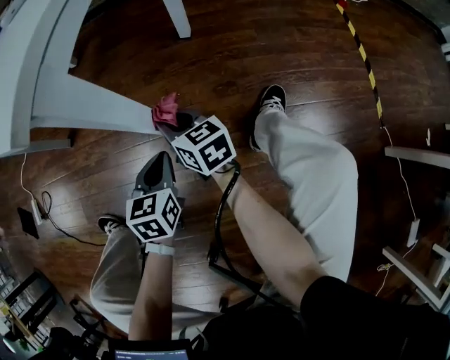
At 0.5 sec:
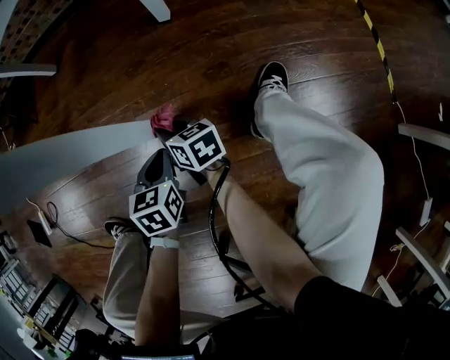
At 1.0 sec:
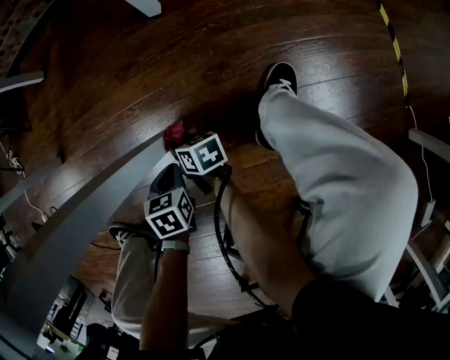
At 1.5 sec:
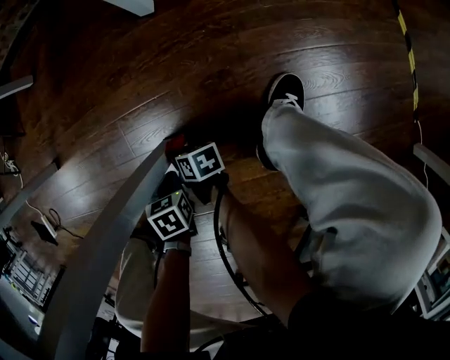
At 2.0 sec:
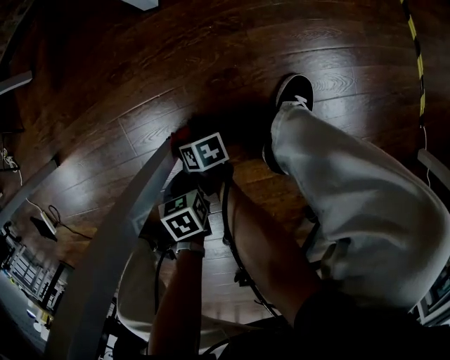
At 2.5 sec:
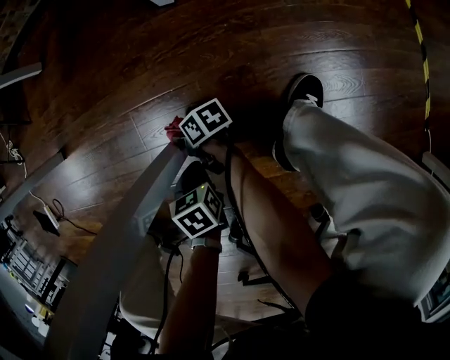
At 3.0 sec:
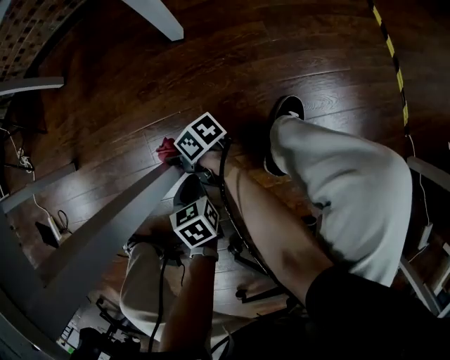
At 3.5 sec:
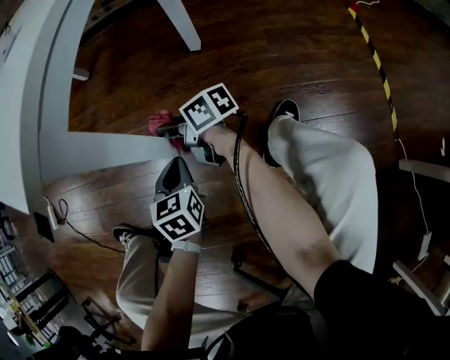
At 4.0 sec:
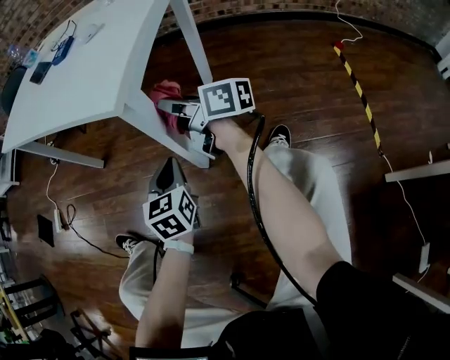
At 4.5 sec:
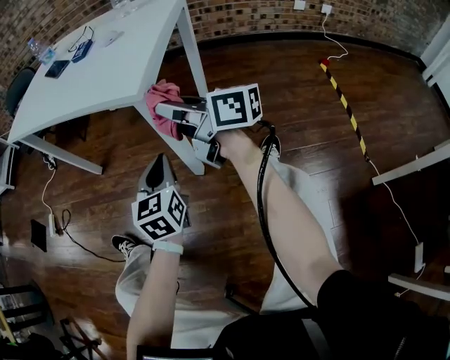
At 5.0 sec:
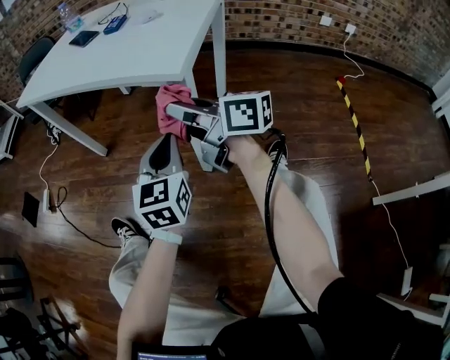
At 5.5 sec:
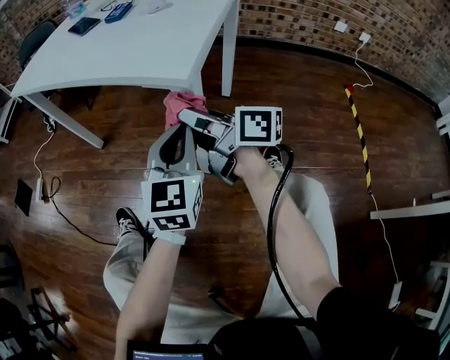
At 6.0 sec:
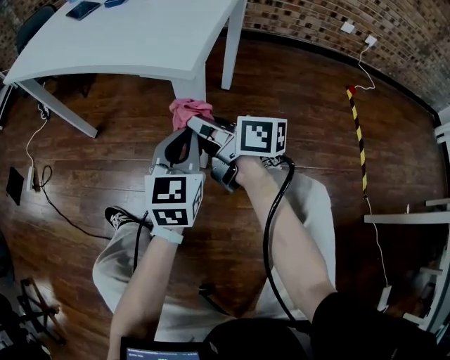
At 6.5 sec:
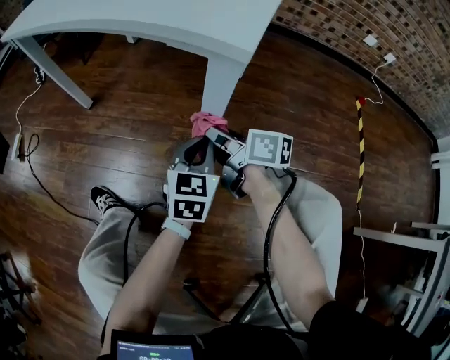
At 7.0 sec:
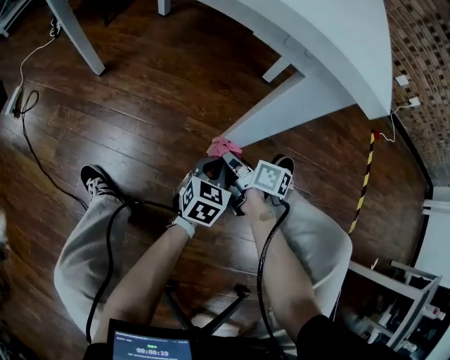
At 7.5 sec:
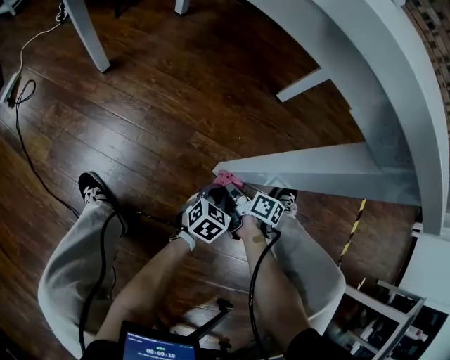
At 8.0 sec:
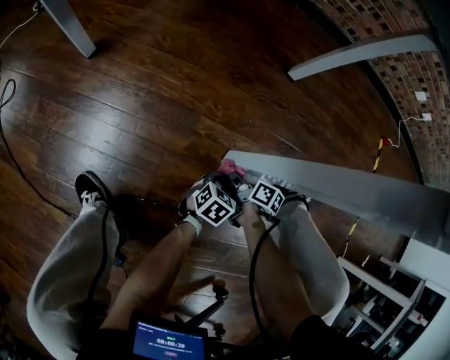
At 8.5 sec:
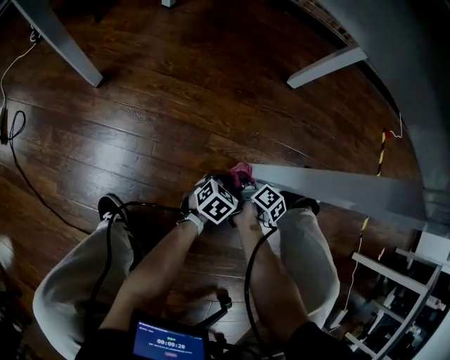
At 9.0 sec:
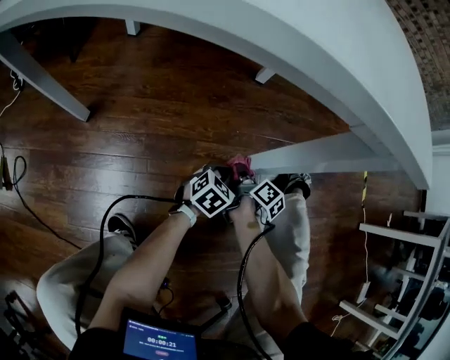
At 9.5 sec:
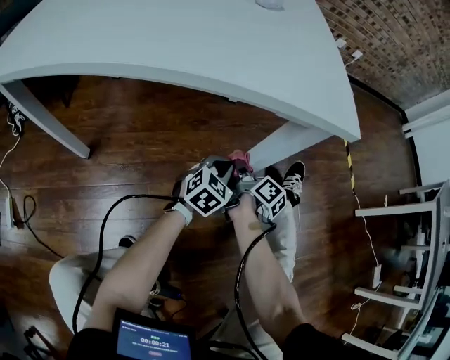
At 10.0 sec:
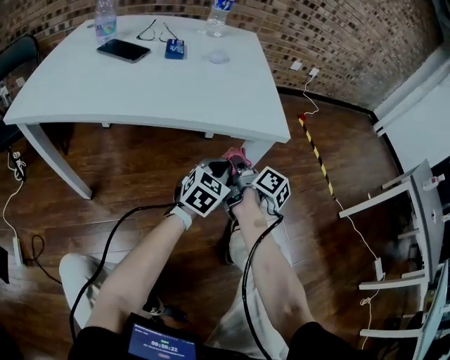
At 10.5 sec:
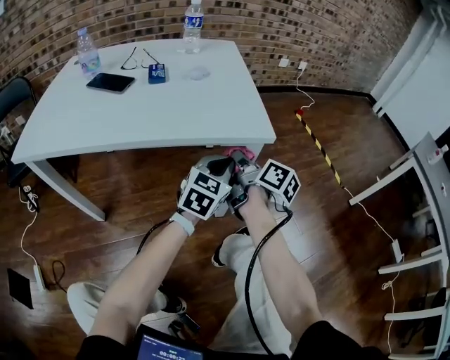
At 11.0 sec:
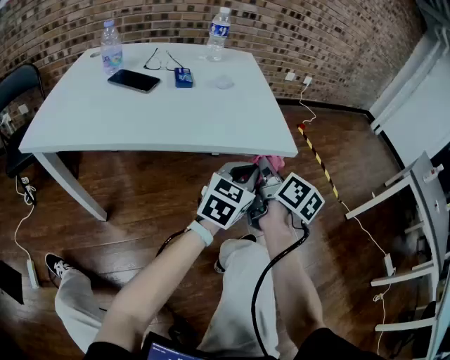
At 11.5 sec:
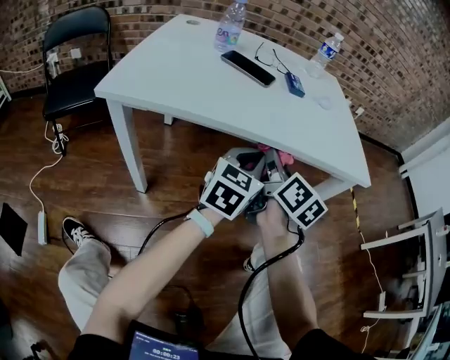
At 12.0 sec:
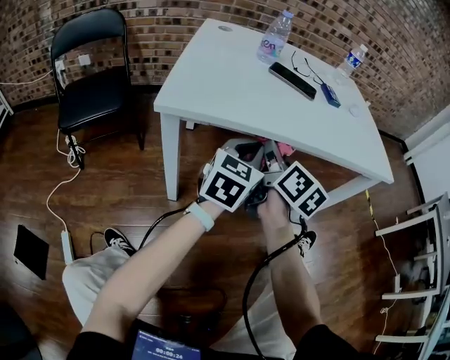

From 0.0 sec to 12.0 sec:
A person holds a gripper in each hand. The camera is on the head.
From 0.0 sec to 2.0 sec: Both grippers travel together downward, some 30 cm. The right gripper twists approximately 40 degrees clockwise, seen from behind; the left gripper points its fingers about 40 degrees further downward.
From 2.0 sec to 4.0 sec: Both grippers move upward, roughly 50 cm. The right gripper points its fingers some 40 degrees further upward, while the left gripper tilts its fingers some 50 degrees upward.
From 4.0 sec to 6.0 sec: The left gripper shifts some 10 cm upward, while the right gripper shifts about 5 cm to the left, and moves about 10 cm upward and comes back.
From 6.0 sec to 8.0 sec: Both grippers travel together downward, roughly 50 cm. The left gripper points its fingers about 30 degrees further downward. Meanwhile the right gripper tilts its fingers some 40 degrees downward.
From 8.0 sec to 10.0 sec: The two grippers go approximately 50 cm upward. The left gripper changes its angle by approximately 50 degrees. The right gripper rotates roughly 50 degrees.
From 10.0 sec to 12.0 sec: The two grippers travel together, to the left, approximately 50 cm. The right gripper changes its angle by approximately 30 degrees.

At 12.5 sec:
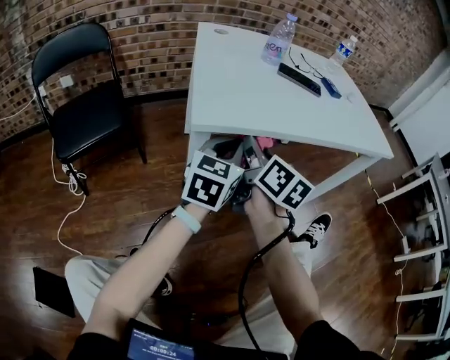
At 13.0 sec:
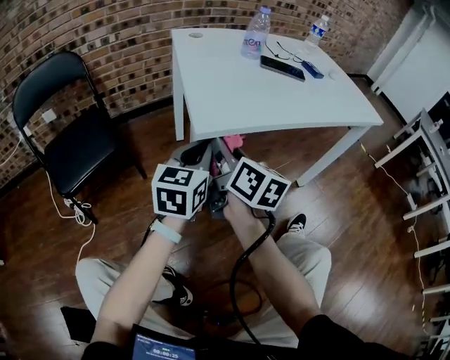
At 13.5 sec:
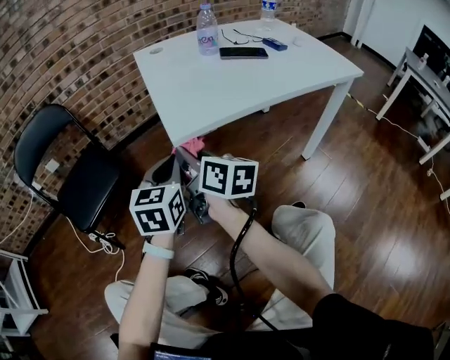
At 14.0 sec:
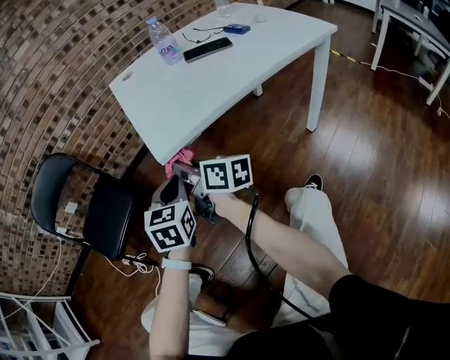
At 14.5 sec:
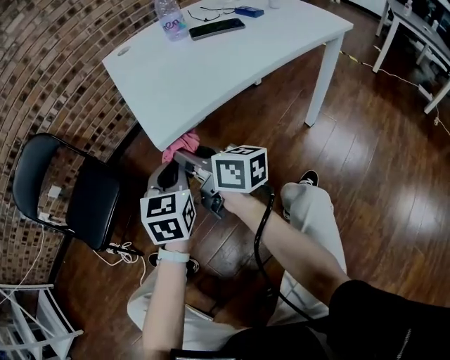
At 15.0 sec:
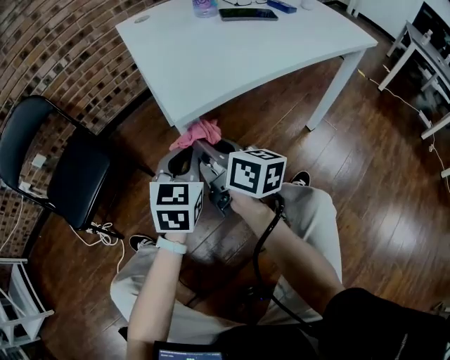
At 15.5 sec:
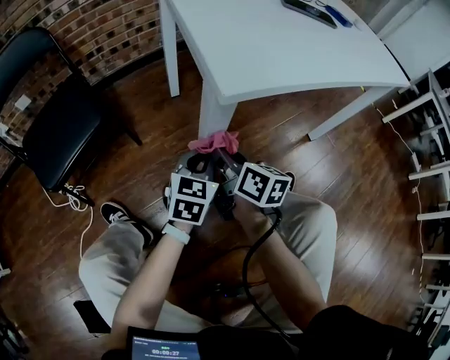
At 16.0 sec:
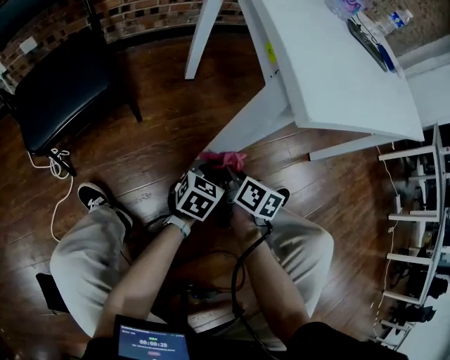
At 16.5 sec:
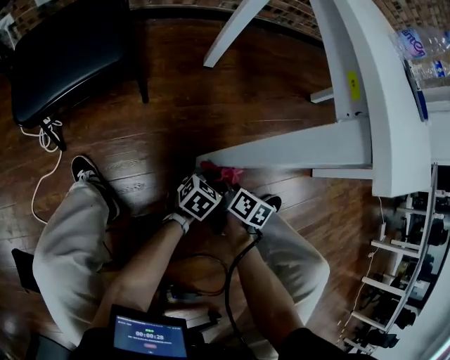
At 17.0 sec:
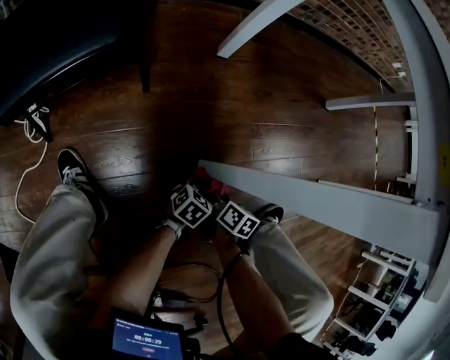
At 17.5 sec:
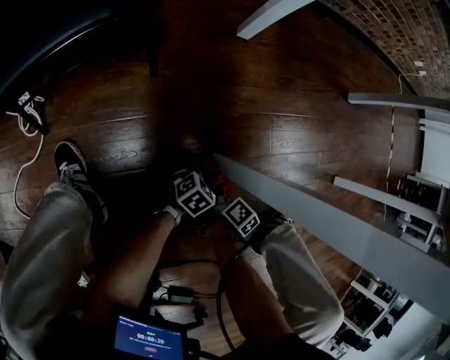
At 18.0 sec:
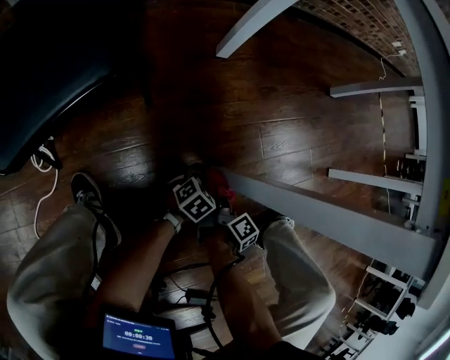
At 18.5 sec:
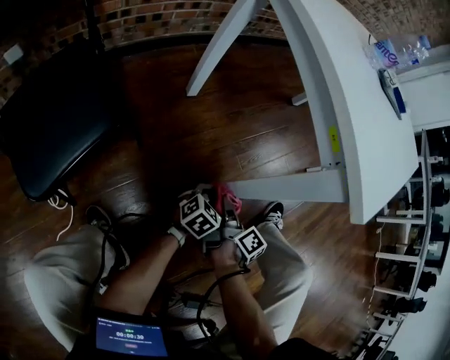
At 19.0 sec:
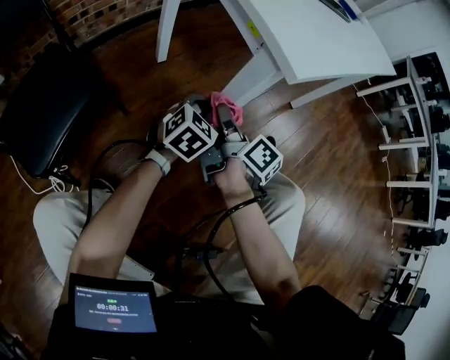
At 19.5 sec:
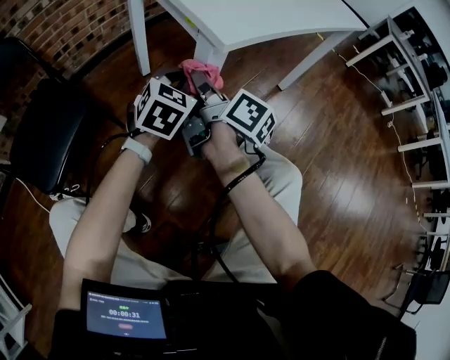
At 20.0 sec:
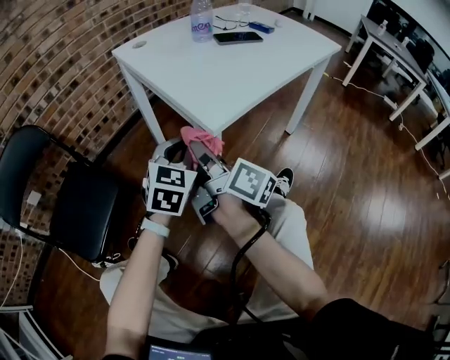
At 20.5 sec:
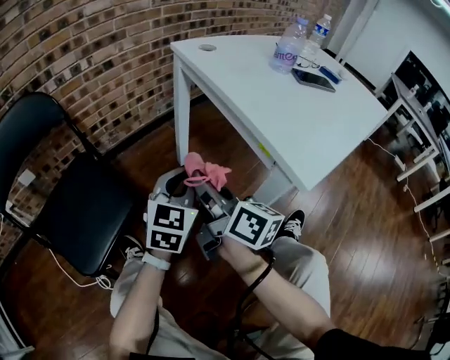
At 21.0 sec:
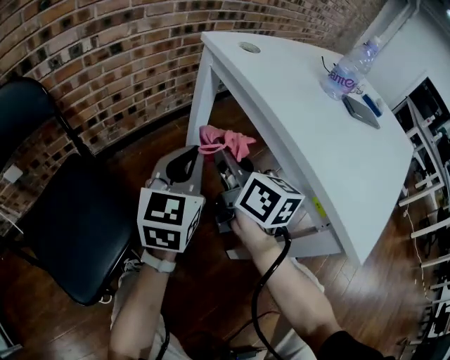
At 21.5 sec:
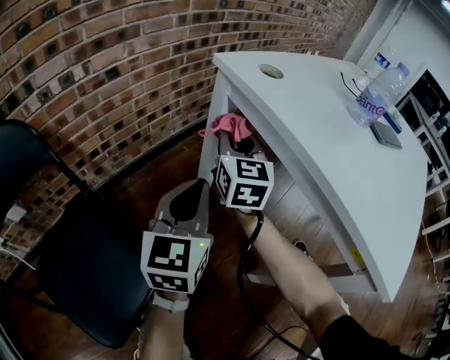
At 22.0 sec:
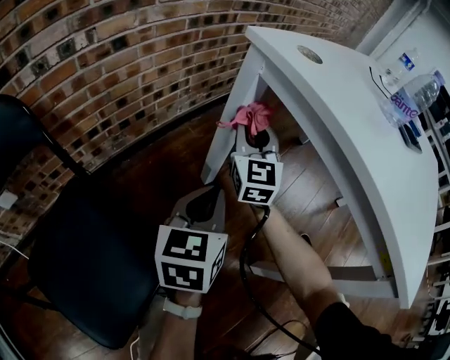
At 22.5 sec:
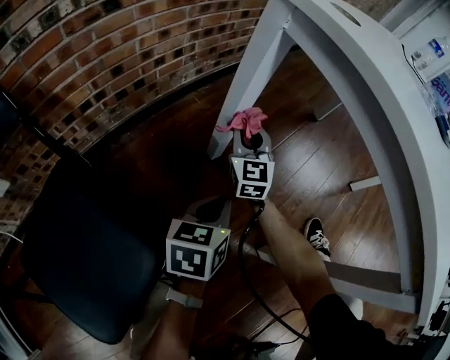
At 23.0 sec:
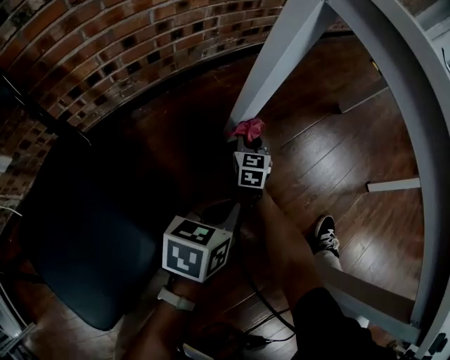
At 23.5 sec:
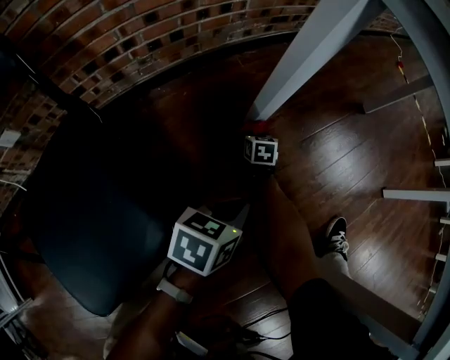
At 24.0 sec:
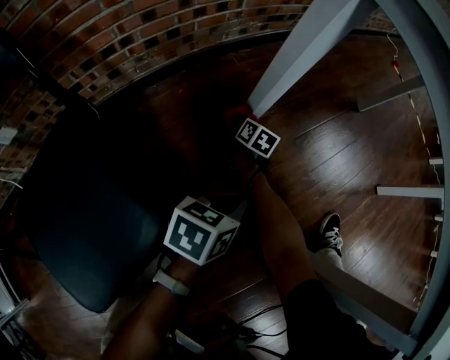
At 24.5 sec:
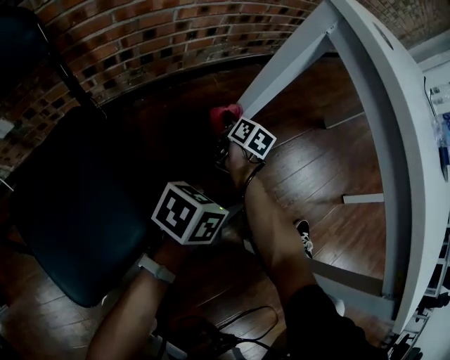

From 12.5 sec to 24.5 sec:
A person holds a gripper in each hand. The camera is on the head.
From 12.5 sec to 14.5 sec: Both grippers move to the left, roughly 10 cm.
From 14.5 sec to 16.5 sec: Both grippers travel together downward, roughly 40 cm. The left gripper turns by about 30 degrees. The right gripper tilts its fingers approximately 40 degrees downward.
From 16.5 sec to 18.5 sec: The left gripper travels to the left by some 5 cm, goes downward and returns, some 20 cm each way, and turns by some 20 degrees; the right gripper travels downward and back again, roughly 20 cm each way, and rotates approximately 50 degrees.
From 18.5 sec to 20.5 sec: The grippers both shift upward and to the left by about 40 cm. The right gripper changes its angle by some 40 degrees, while the left gripper rotates some 30 degrees.
From 20.5 sec to 22.5 sec: The left gripper shifts roughly 30 cm downward and forward, and changes its angle by about 40 degrees, while the right gripper moves forward and downward, approximately 50 cm, and rolls counterclockwise, seen from behind, by about 60 degrees.
From 22.5 sec to 24.5 sec: The left gripper travels downward and back again, approximately 5 cm each way, and turns by roughly 20 degrees. The right gripper shifts approximately 15 cm downward and to the left, and rolls clockwise, seen from behind, by about 40 degrees.

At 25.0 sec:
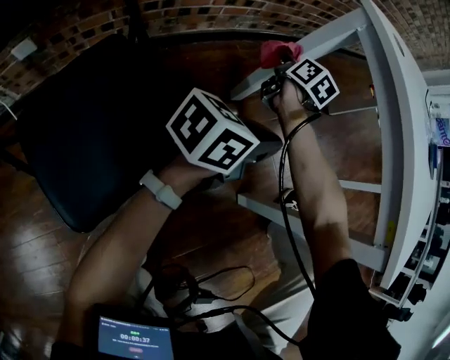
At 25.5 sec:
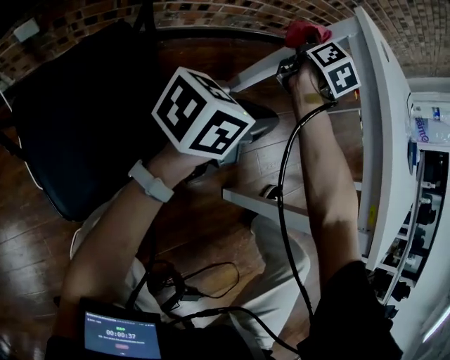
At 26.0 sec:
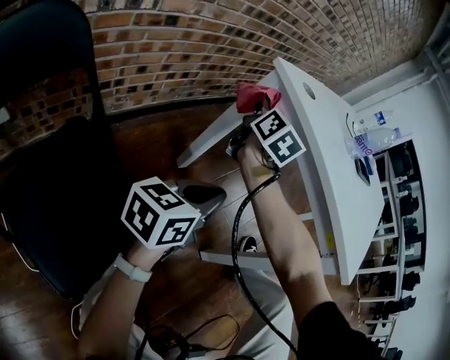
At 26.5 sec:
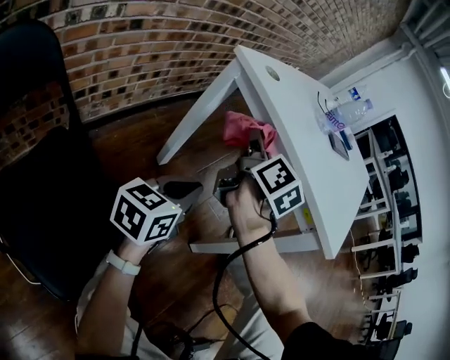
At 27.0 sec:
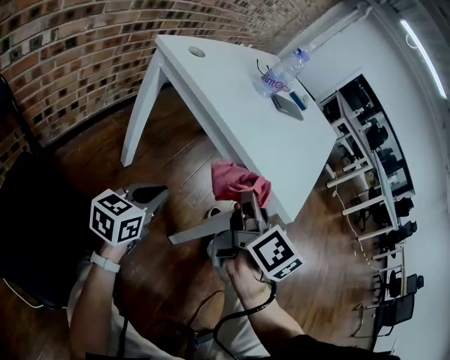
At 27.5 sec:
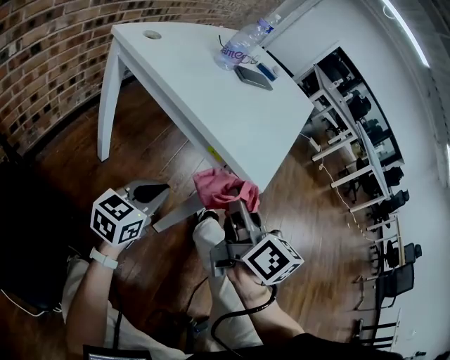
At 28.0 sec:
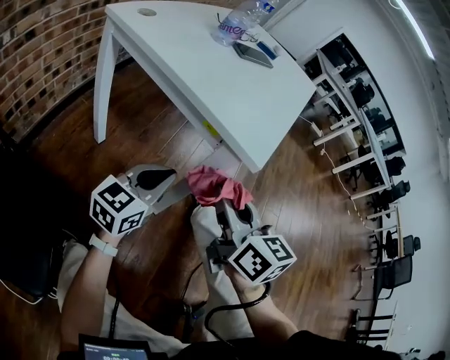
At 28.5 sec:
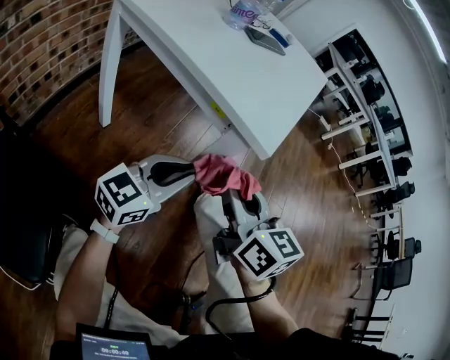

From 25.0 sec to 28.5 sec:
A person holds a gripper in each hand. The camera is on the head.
From 25.0 sec to 27.0 sec: The right gripper moves to the right, upward and backward, some 50 cm, and turns by approximately 30 degrees. Meanwhile the left gripper moves to the right, some 5 cm.
From 27.0 sec to 28.5 sec: The left gripper is displaced to the right by approximately 20 cm, and changes its angle by approximately 30 degrees. Meanwhile the right gripper heads to the right and backward, covering about 10 cm, and rotates approximately 20 degrees.
